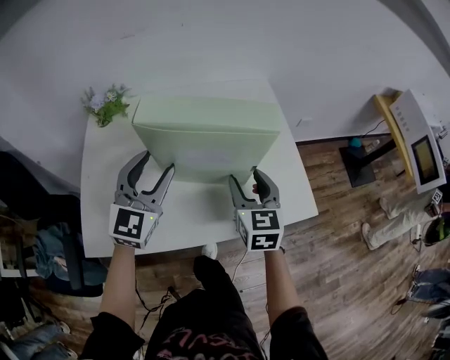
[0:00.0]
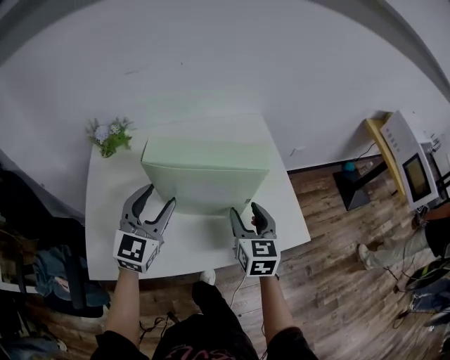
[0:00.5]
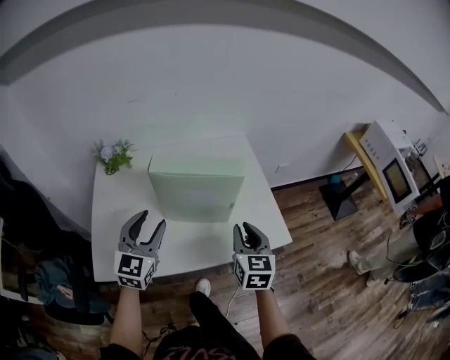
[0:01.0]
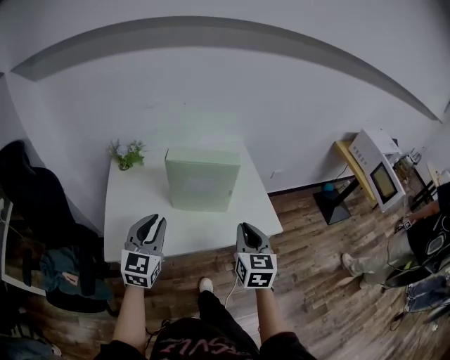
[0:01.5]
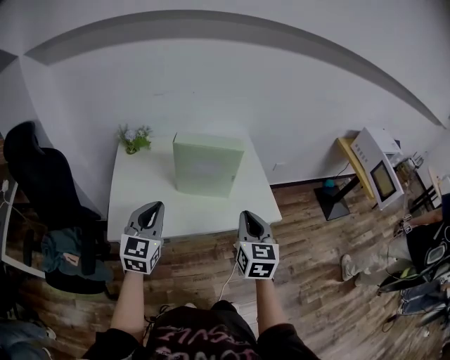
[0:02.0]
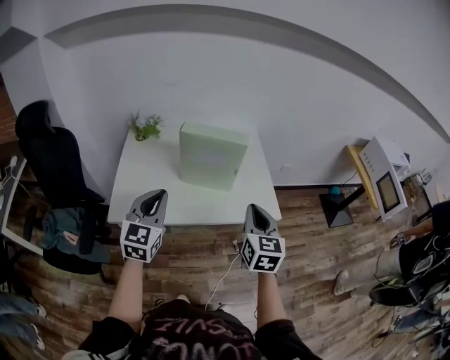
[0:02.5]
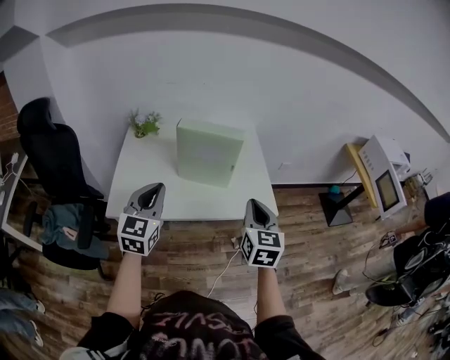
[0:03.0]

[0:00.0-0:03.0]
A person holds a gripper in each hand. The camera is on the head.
0:00.0 to 0:01.5: Both grippers move backward and upward, some 20 cm. The right gripper closes its fingers. Meanwhile the left gripper closes up.
0:01.5 to 0:03.0: The right gripper ends up roughly 5 cm from where it was; the left gripper heads backward, covering approximately 5 cm.

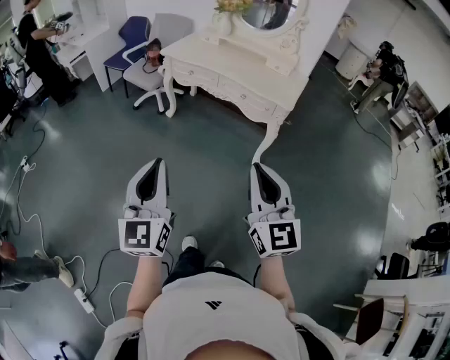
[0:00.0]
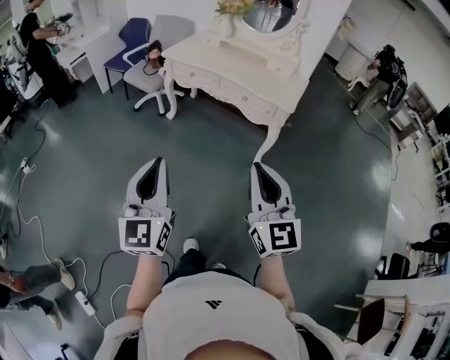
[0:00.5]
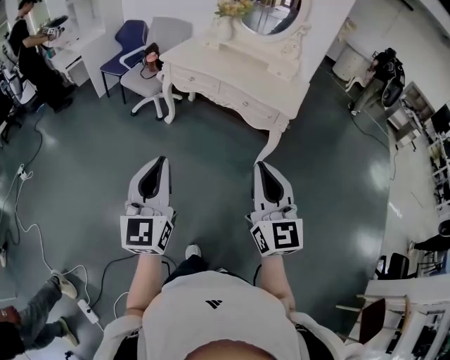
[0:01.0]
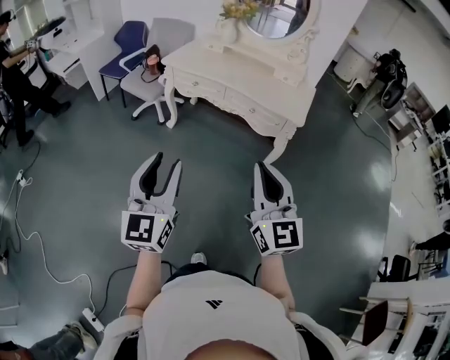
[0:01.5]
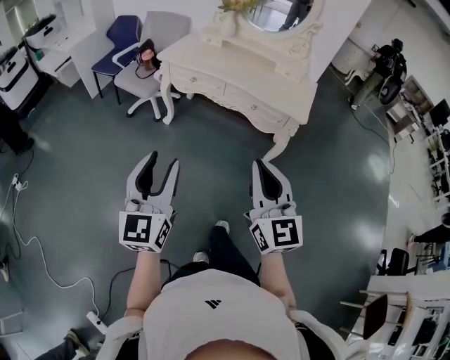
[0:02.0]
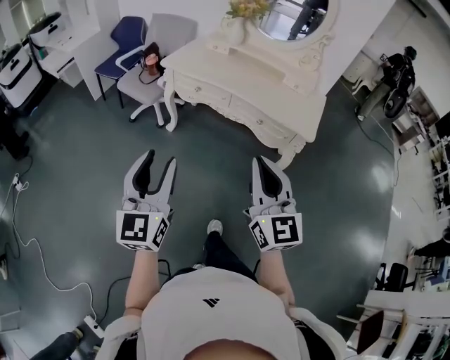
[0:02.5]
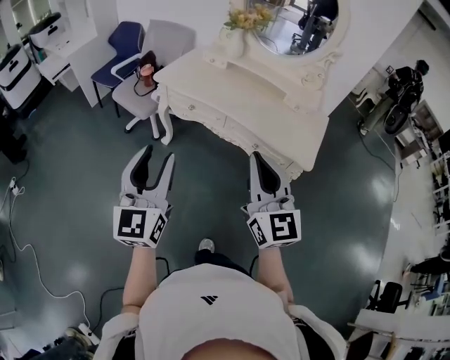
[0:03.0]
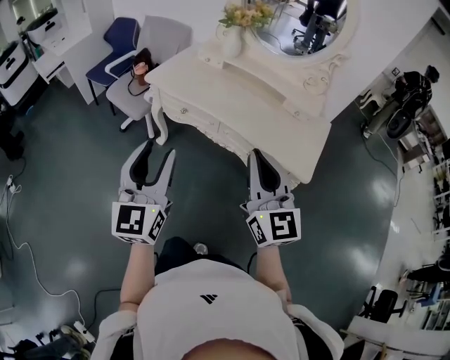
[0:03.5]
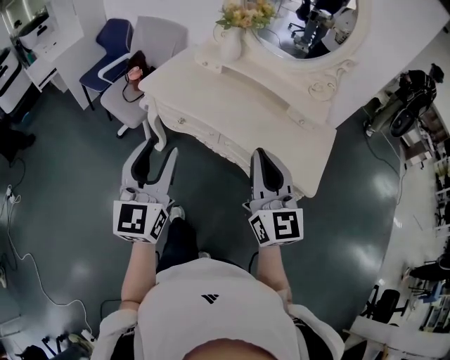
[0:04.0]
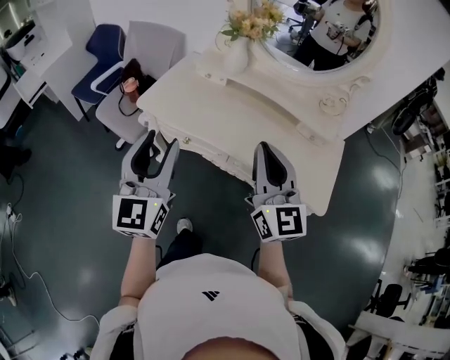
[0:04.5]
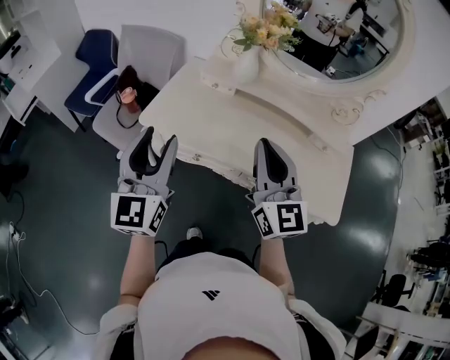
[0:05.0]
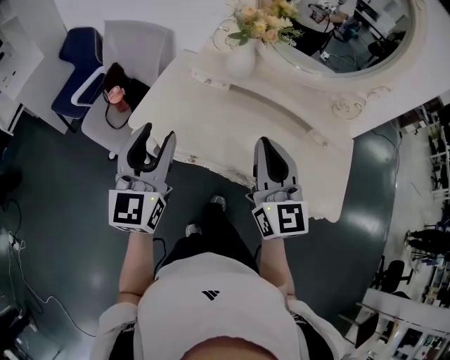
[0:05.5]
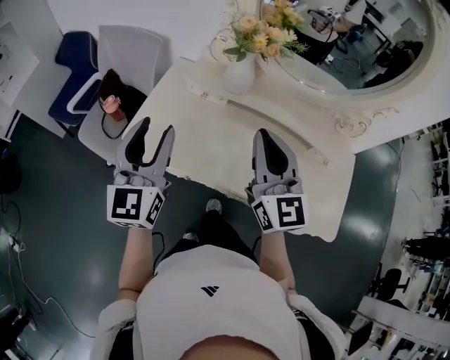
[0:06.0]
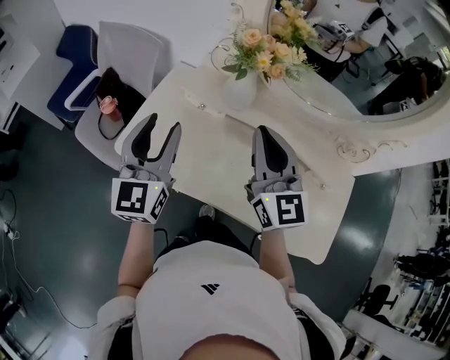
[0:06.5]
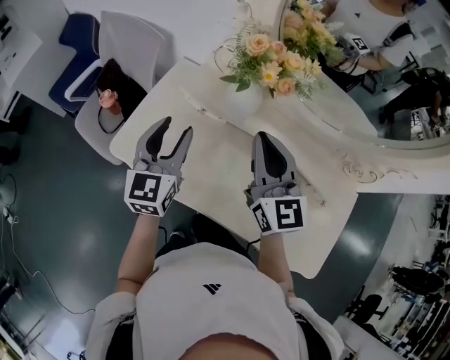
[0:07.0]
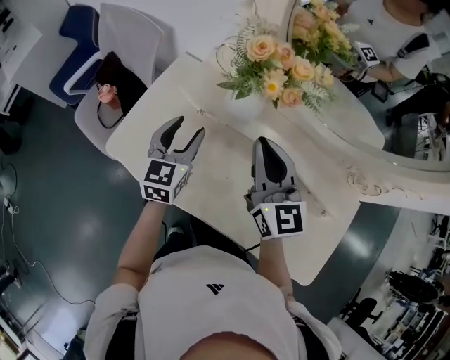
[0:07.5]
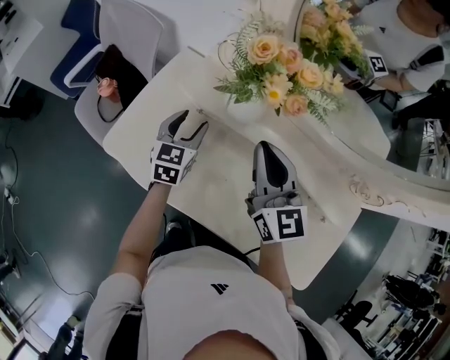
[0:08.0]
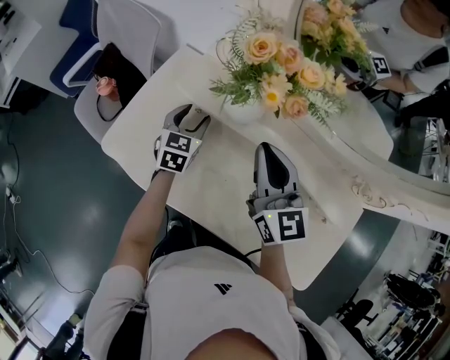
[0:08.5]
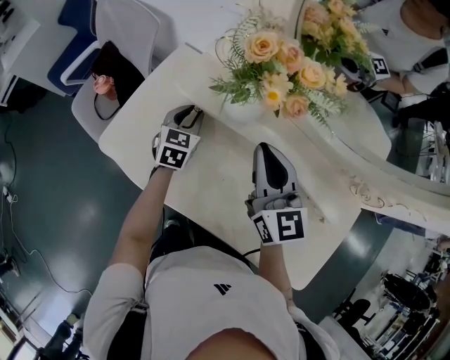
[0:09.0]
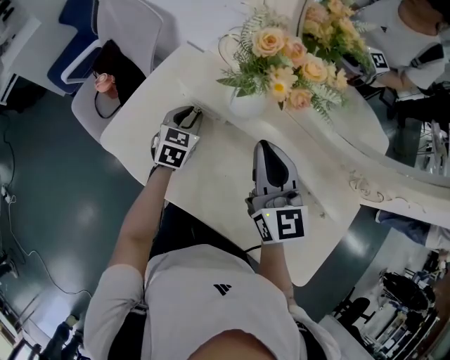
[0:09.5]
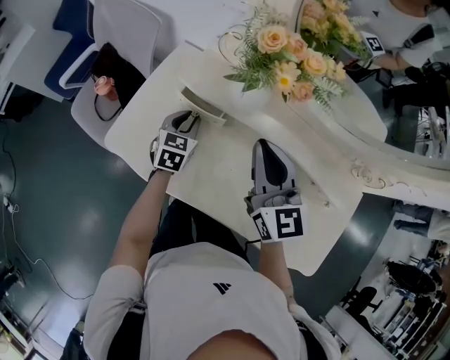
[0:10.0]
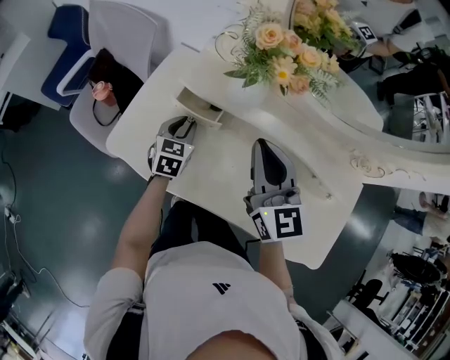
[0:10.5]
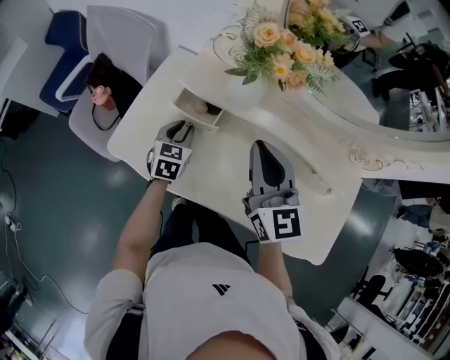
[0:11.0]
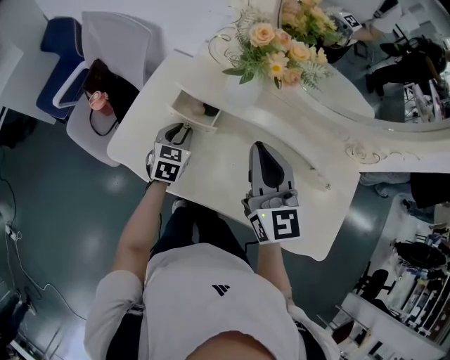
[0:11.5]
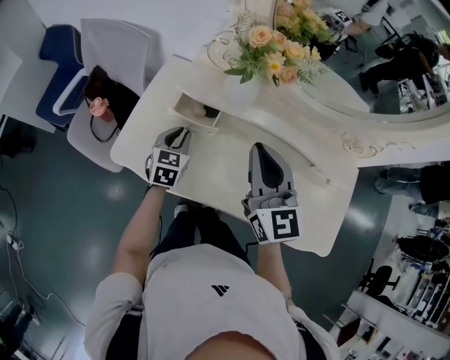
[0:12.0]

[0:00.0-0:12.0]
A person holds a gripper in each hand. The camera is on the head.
0:00.0 to 0:02.0: Both grippers move forward and to the left, roughly 20 cm. The left gripper opens its fingers.
0:02.0 to 0:04.0: Both grippers move forward, about 40 cm.
0:04.0 to 0:06.0: The grippers both shift forward by roughly 35 cm.
0:06.0 to 0:08.0: The right gripper moves forward and downward, approximately 20 cm. The left gripper goes some 35 cm downward, forward and to the right, and tilts its fingers about 30 degrees downward.
0:08.0 to 0:10.0: The left gripper closes up.
0:10.0 to 0:12.0: The right gripper shifts roughly 5 cm backward. Meanwhile the left gripper ends up roughly 5 cm from where it was.

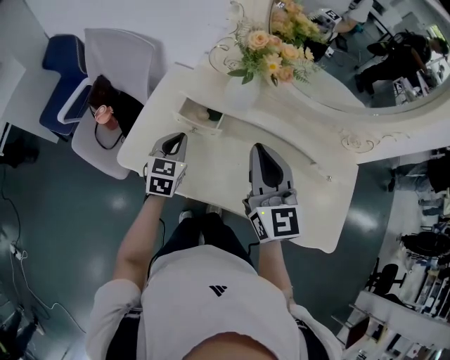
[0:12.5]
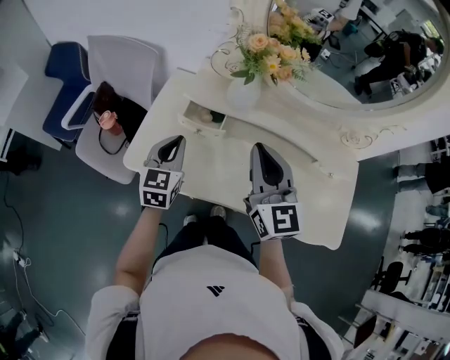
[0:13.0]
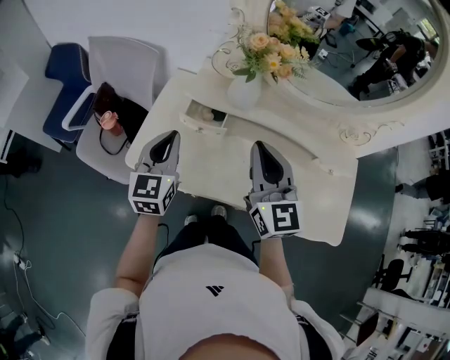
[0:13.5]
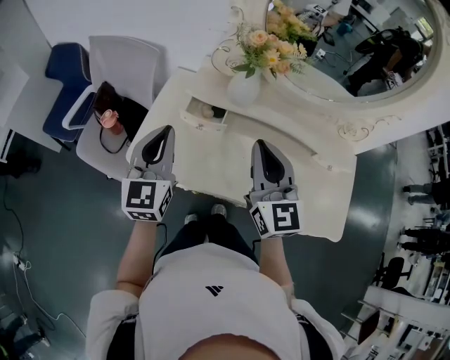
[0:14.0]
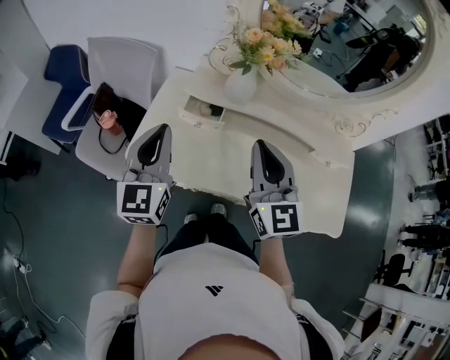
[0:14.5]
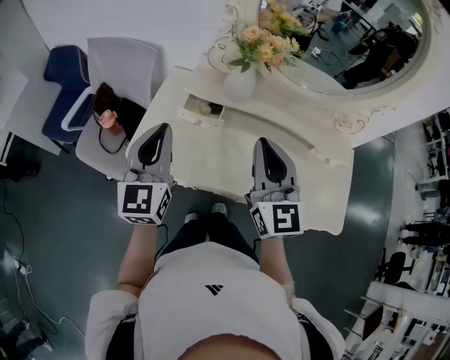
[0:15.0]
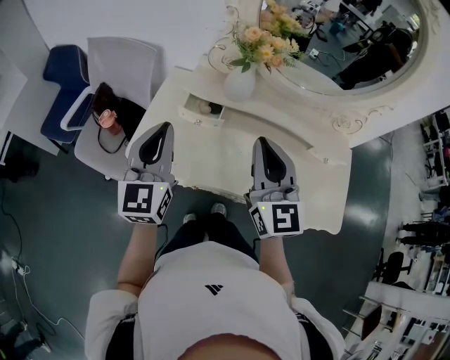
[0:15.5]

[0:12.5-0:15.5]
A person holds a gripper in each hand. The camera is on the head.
0:12.5 to 0:14.0: The left gripper is displaced upward and backward by about 20 cm, and changes its angle by about 20 degrees.
0:14.0 to 0:15.5: There are only small adjustments of the grippers.

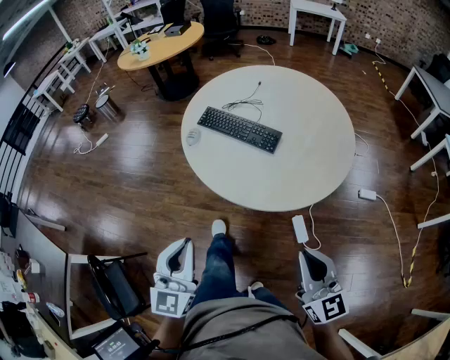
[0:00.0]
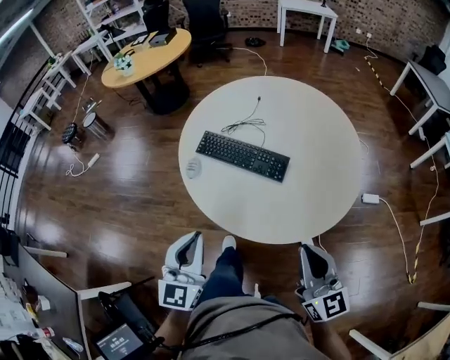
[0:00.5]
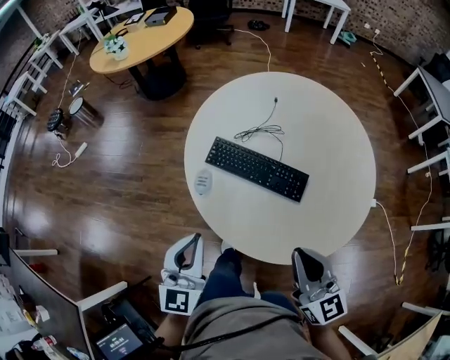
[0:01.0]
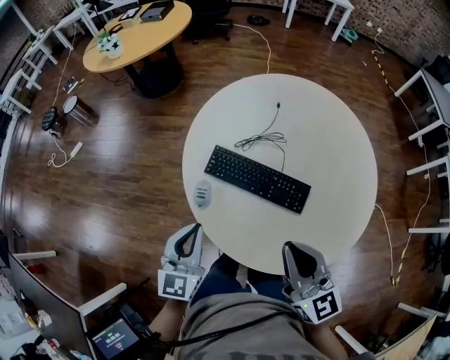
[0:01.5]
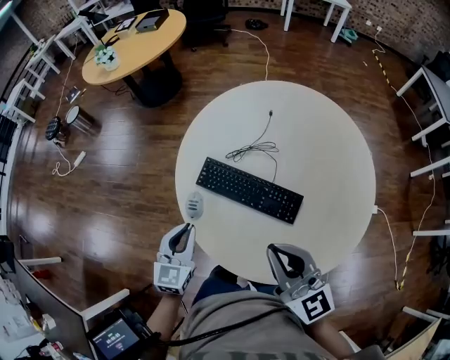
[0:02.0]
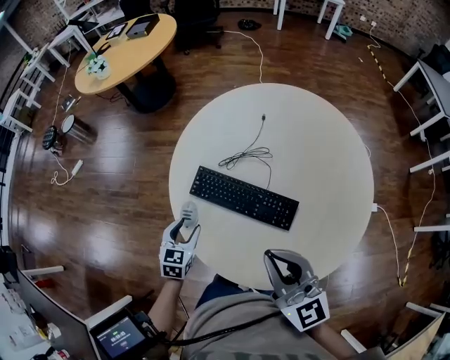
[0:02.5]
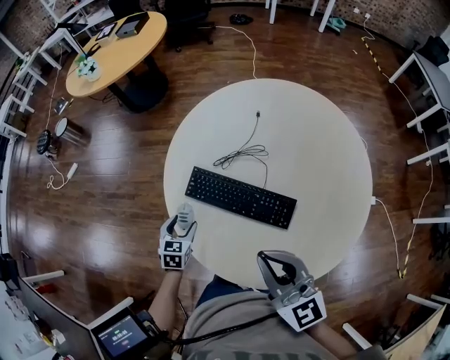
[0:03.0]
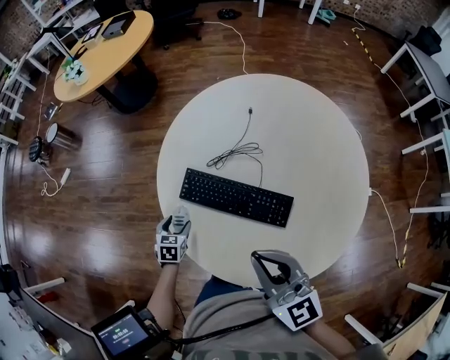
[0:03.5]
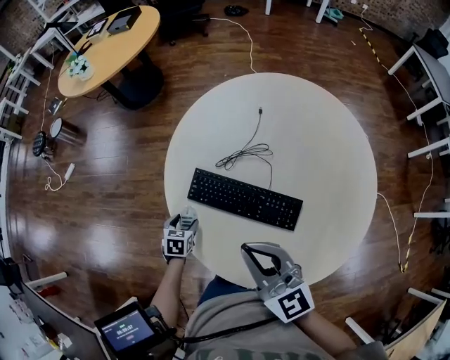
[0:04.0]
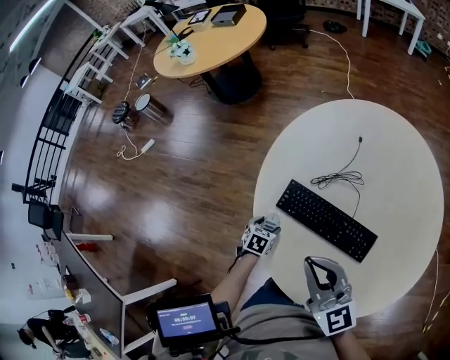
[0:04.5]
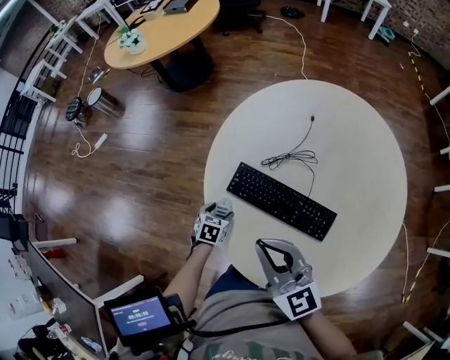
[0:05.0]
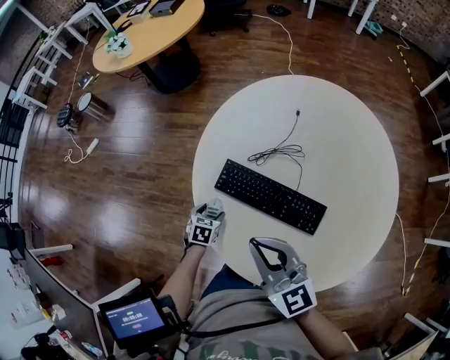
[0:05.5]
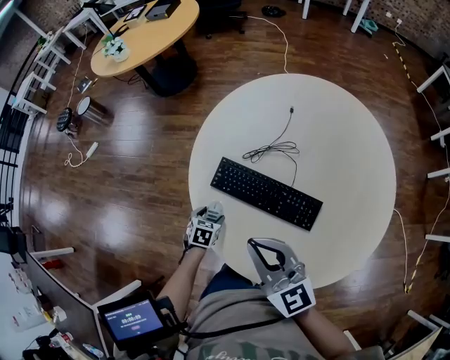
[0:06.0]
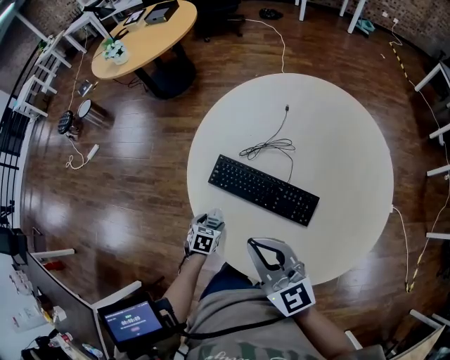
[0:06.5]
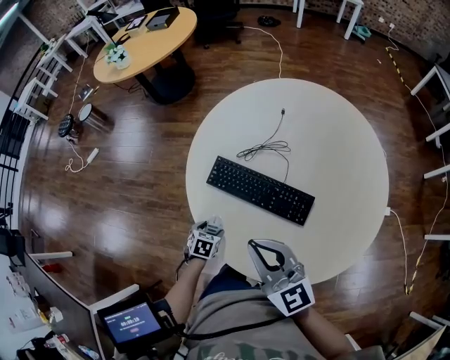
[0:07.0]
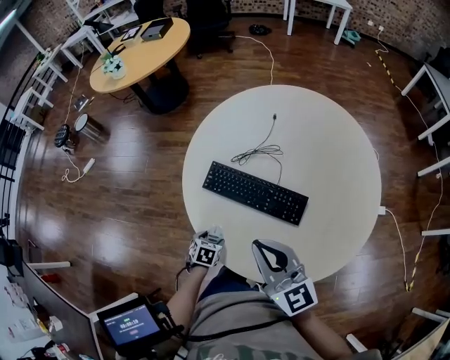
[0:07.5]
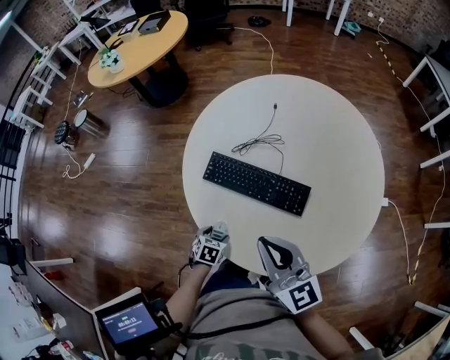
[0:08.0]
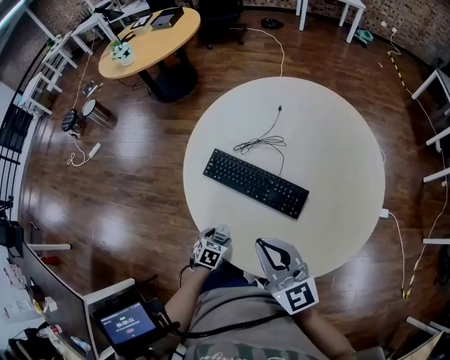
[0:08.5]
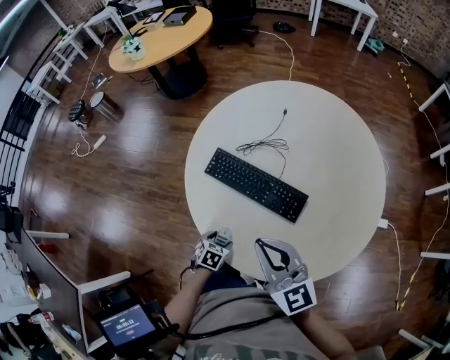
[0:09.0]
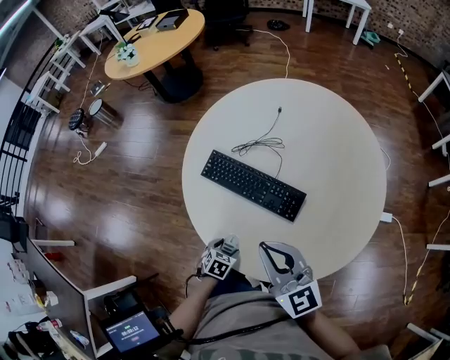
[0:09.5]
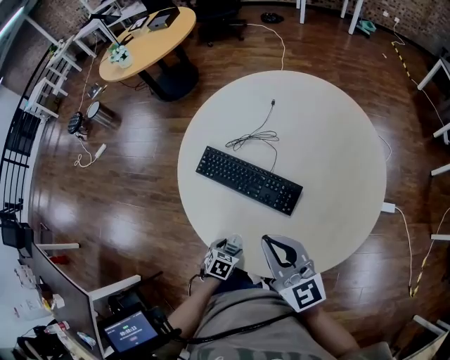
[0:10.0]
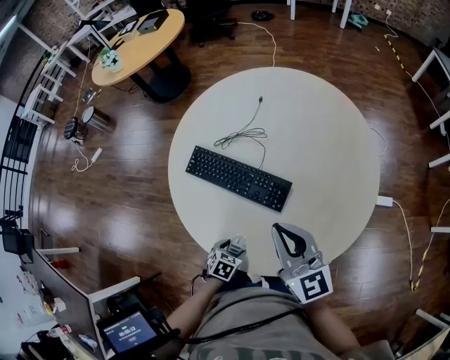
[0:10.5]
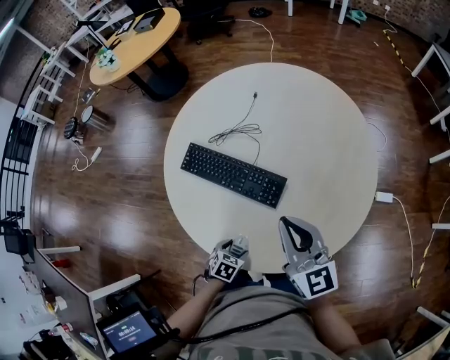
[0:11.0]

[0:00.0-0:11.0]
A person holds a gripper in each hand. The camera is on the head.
0:00.0 to 0:02.0: Both grippers are carried forward, about 40 cm. The left gripper rotates approximately 20 degrees.
0:02.0 to 0:03.5: The left gripper moves downward, roughly 20 cm, tips its fingers downward by roughly 30 degrees, and opens up.
0:03.5 to 0:05.5: The right gripper goes approximately 10 cm to the left.
0:05.5 to 0:07.5: The right gripper goes some 5 cm backward. Meanwhile the left gripper travels backward by approximately 15 cm.
0:07.5 to 0:09.0: The left gripper is displaced to the right by roughly 5 cm.
0:09.0 to 0:11.0: The left gripper heads to the right and backward, covering about 15 cm. The right gripper shifts roughly 15 cm to the right.
